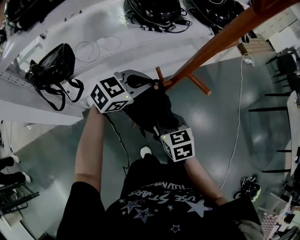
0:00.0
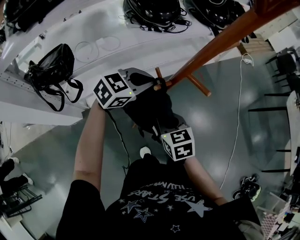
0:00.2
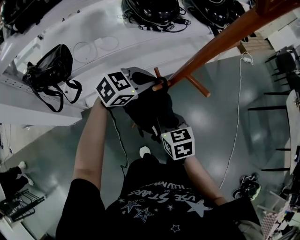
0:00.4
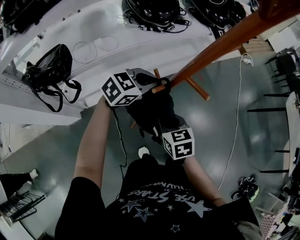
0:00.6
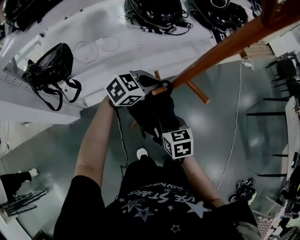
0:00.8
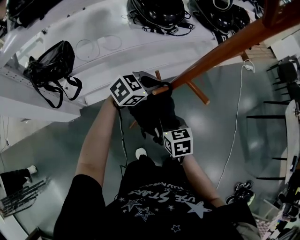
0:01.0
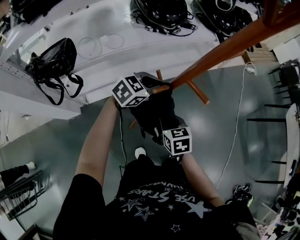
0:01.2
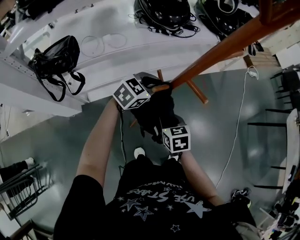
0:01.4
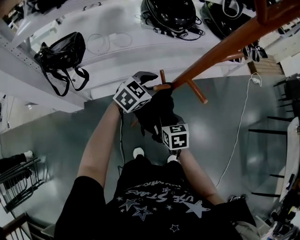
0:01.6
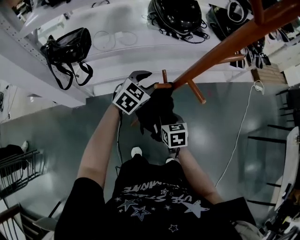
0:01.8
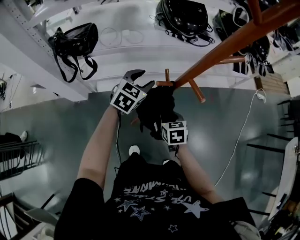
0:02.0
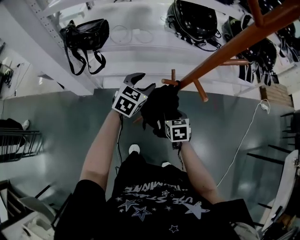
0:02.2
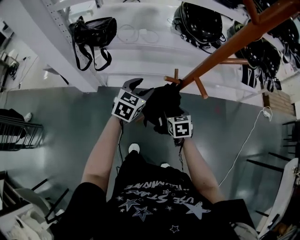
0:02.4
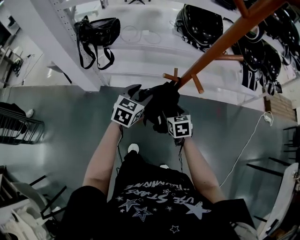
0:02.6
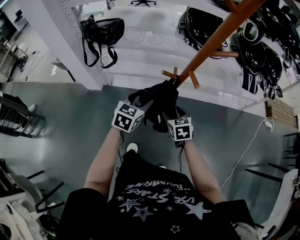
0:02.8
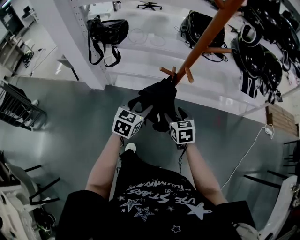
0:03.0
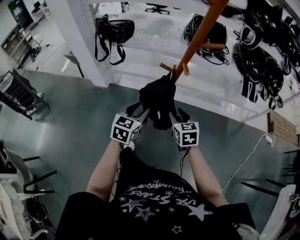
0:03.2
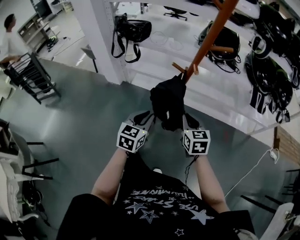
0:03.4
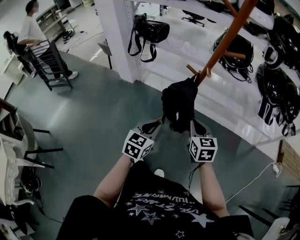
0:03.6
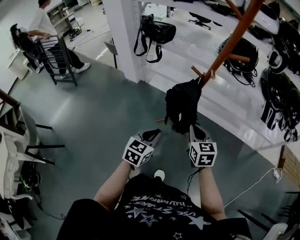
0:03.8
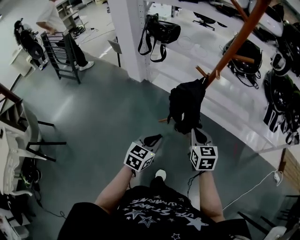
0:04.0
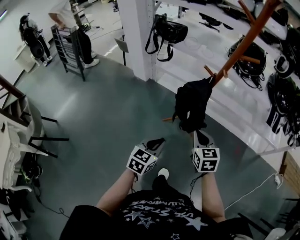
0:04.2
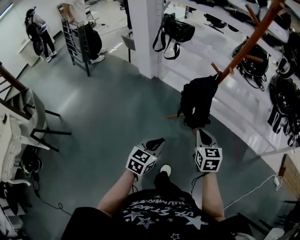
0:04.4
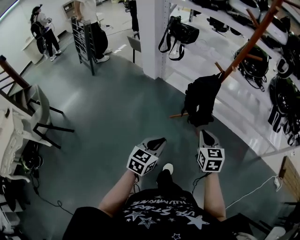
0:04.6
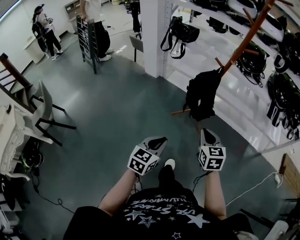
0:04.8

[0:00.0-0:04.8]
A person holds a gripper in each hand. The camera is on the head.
0:00.0 to 0:01.6: The grippers both shift downward by approximately 5 cm. The left gripper opens.
0:01.6 to 0:03.2: The right gripper moves about 15 cm, changes its angle by roughly 30 degrees, and opens its fingers. The left gripper moves roughly 25 cm, and swivels about 50 degrees.
0:03.2 to 0:04.8: The grippers both shift backward by roughly 35 cm. The left gripper closes up. The right gripper closes its fingers.

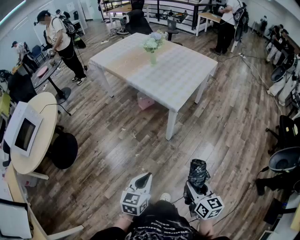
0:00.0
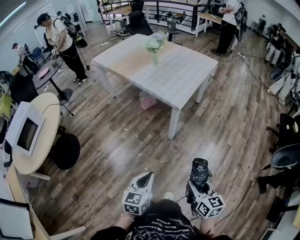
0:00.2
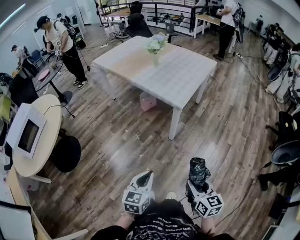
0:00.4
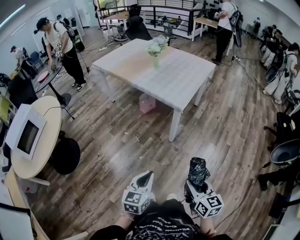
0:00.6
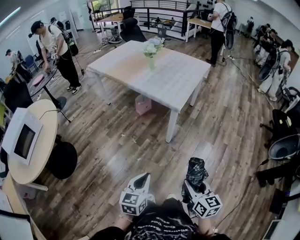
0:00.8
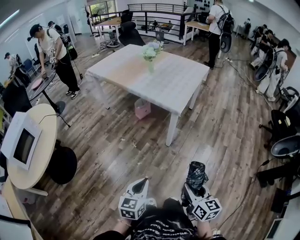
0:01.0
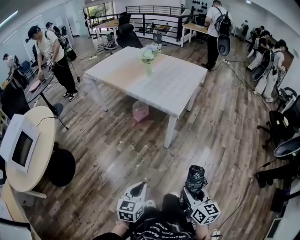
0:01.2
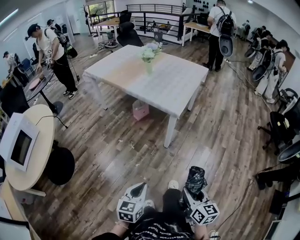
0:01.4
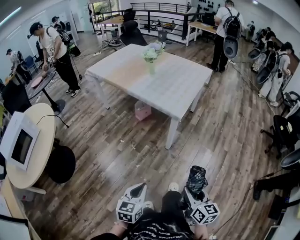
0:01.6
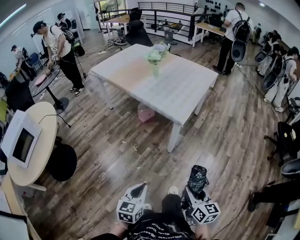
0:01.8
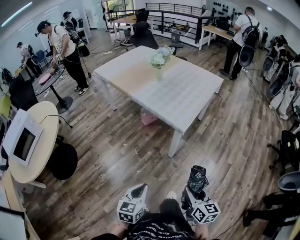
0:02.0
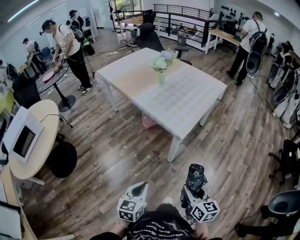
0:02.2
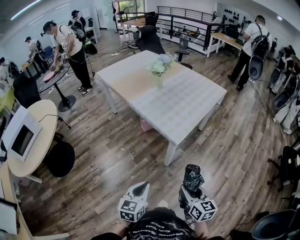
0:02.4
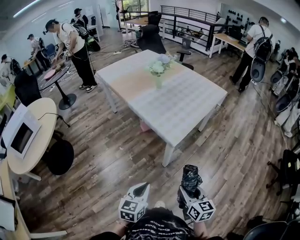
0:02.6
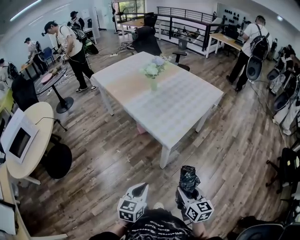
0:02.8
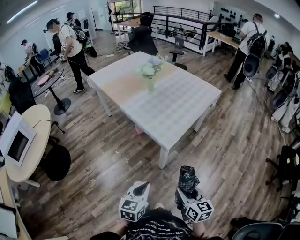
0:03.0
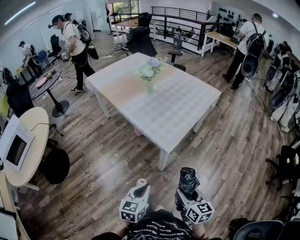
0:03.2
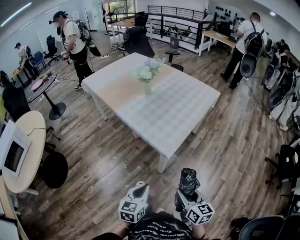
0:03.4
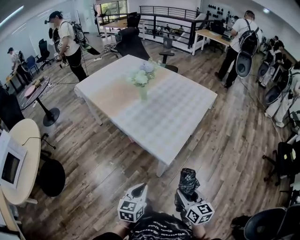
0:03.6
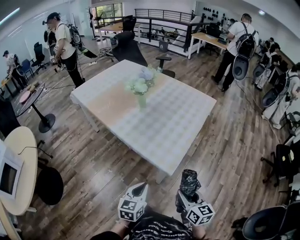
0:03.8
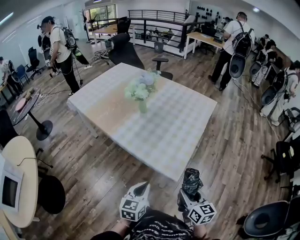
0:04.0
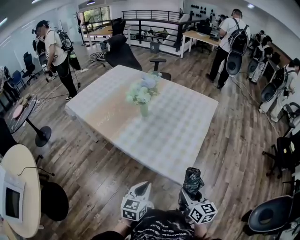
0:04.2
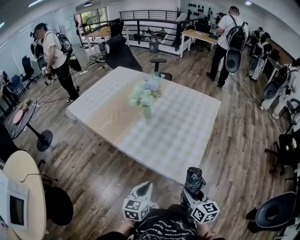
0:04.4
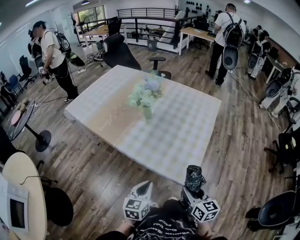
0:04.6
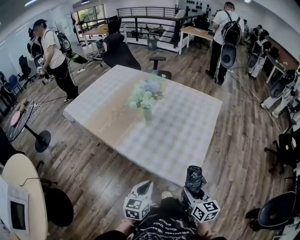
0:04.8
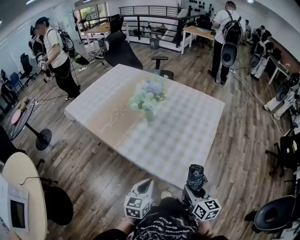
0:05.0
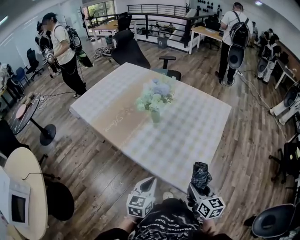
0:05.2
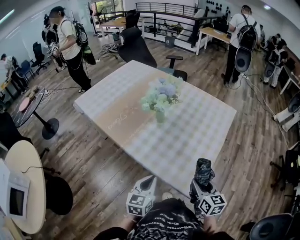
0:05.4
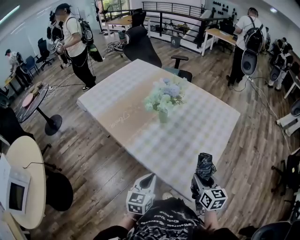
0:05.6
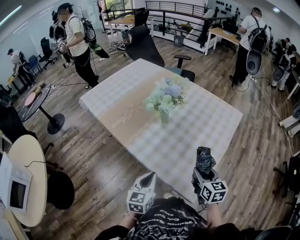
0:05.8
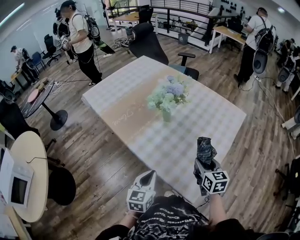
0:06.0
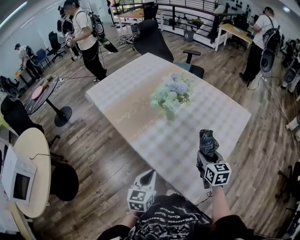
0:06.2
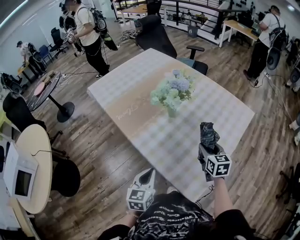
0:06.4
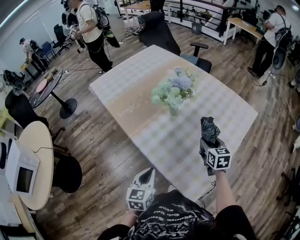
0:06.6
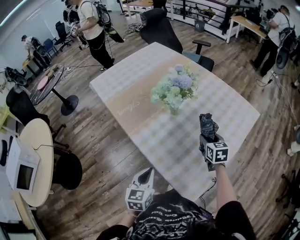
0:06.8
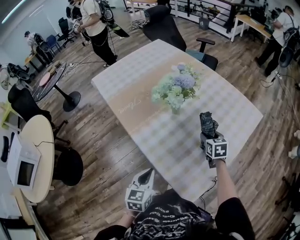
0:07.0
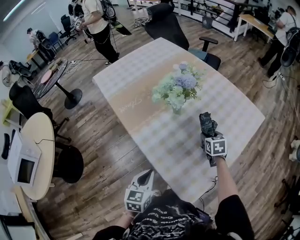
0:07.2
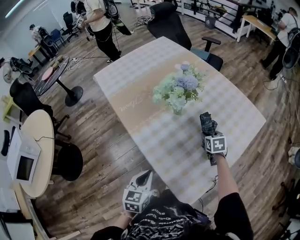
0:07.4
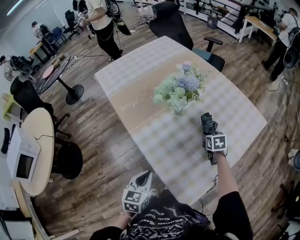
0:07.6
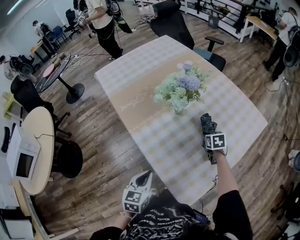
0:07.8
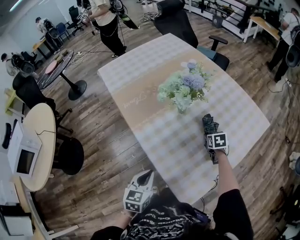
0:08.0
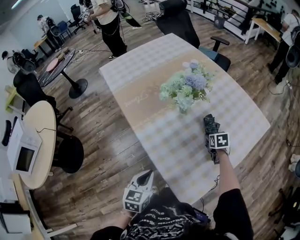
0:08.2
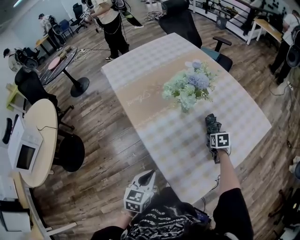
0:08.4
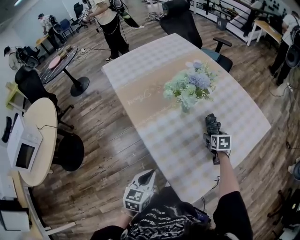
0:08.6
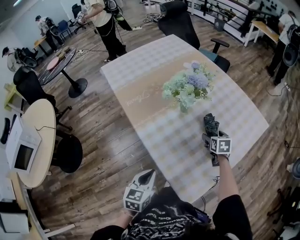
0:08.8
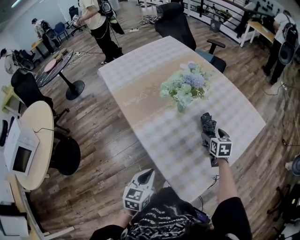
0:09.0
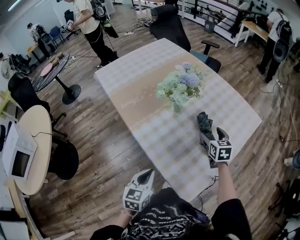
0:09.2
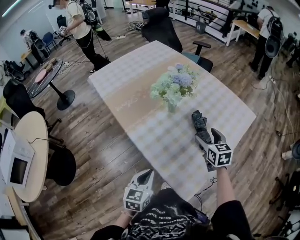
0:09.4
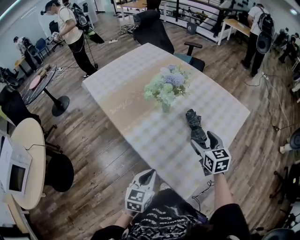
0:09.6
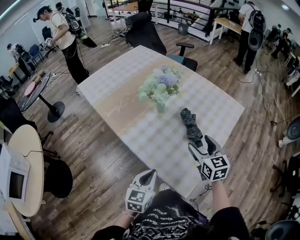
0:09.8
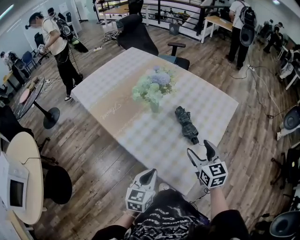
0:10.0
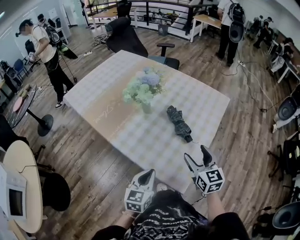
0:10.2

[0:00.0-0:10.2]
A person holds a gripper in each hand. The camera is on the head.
0:00.0 to 0:01.4: Both grippers travel together to the left and backward, approximately 15 cm.
0:01.4 to 0:03.0: Both grippers move forward and to the right, roughly 35 cm.
0:03.0 to 0:04.4: Both grippers move forward and to the left, some 40 cm.
0:04.4 to 0:05.8: The right gripper heads forward, covering roughly 20 cm, while the left gripper goes some 15 cm forward.
0:05.8 to 0:07.2: The right gripper heads forward and downward, covering approximately 30 cm, and swivels some 20 degrees. The left gripper shifts by roughly 5 cm.
0:07.2 to 0:08.8: The right gripper opens.
0:08.8 to 0:10.2: The left gripper heads to the right, covering about 5 cm, and changes its angle by some 20 degrees. The right gripper shifts about 30 cm backward and upward, and changes its angle by about 30 degrees.

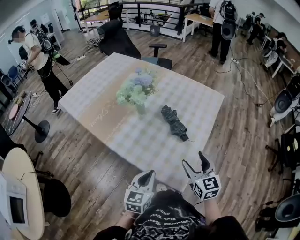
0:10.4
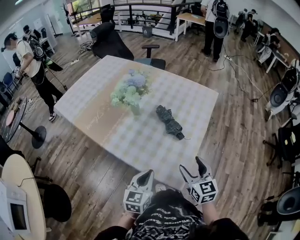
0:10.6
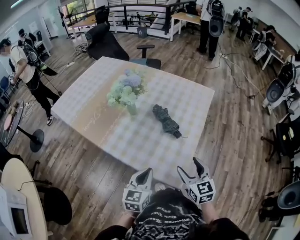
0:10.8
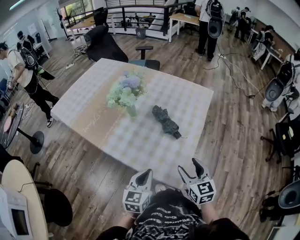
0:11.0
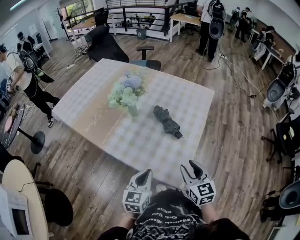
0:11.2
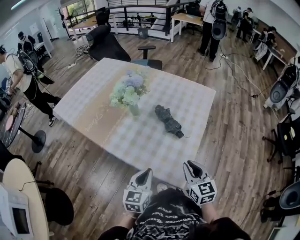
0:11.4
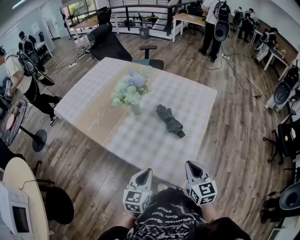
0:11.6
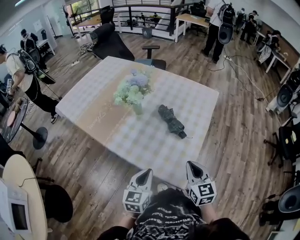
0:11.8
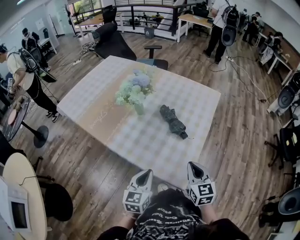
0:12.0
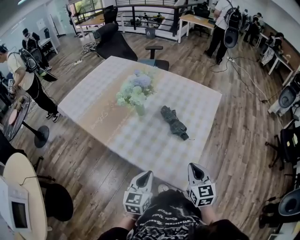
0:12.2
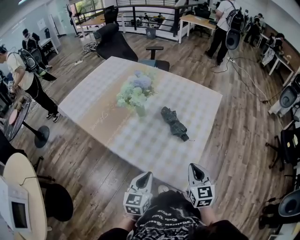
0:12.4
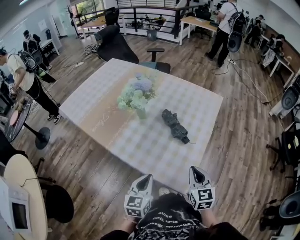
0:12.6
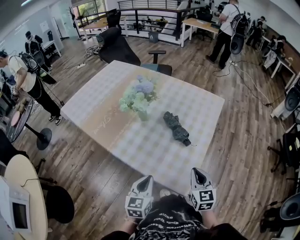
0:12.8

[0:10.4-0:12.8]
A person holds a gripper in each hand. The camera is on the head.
0:10.4 to 0:11.6: The right gripper shifts some 5 cm backward, and closes up.
0:11.6 to 0:12.8: The grippers stay close to where they were, moving slightly.

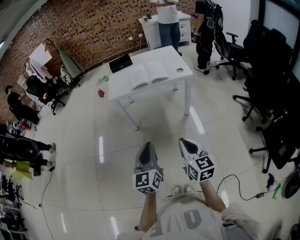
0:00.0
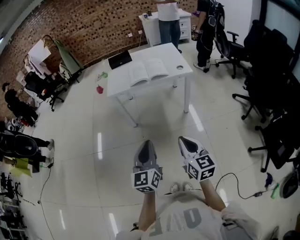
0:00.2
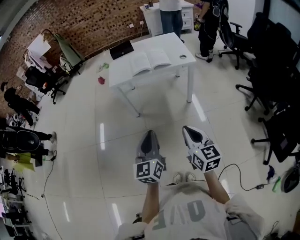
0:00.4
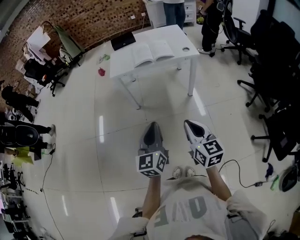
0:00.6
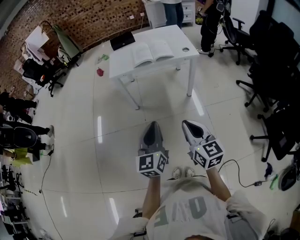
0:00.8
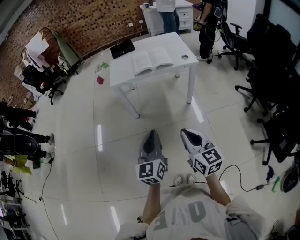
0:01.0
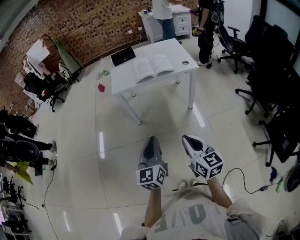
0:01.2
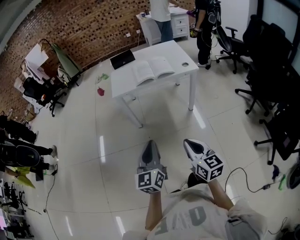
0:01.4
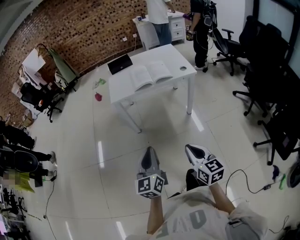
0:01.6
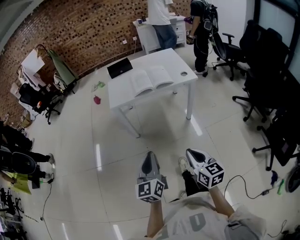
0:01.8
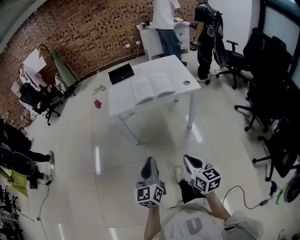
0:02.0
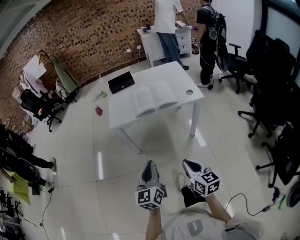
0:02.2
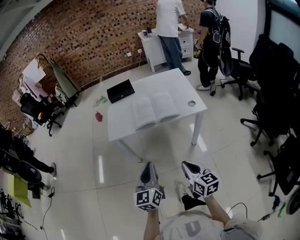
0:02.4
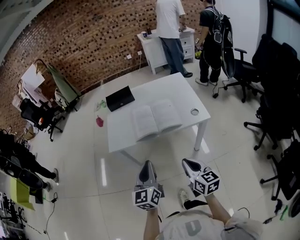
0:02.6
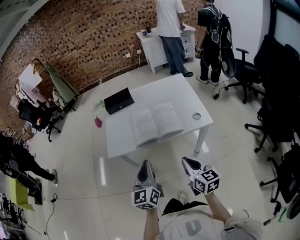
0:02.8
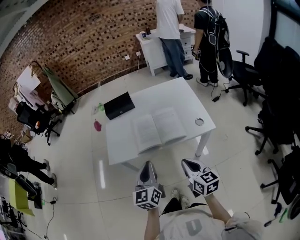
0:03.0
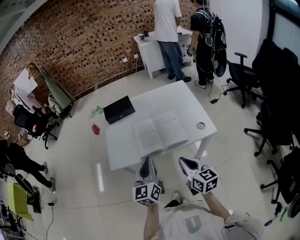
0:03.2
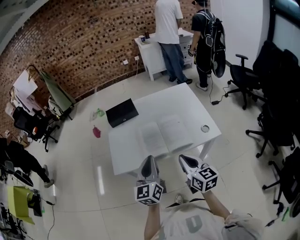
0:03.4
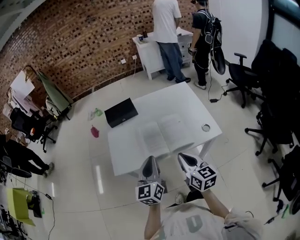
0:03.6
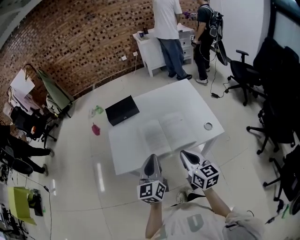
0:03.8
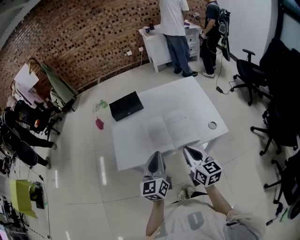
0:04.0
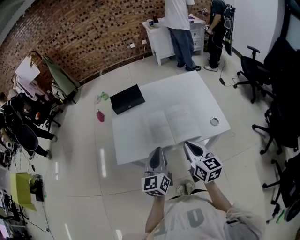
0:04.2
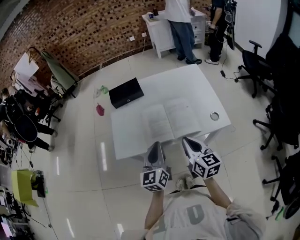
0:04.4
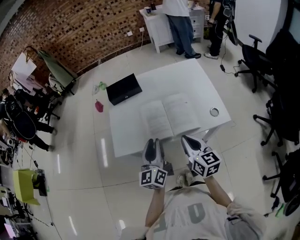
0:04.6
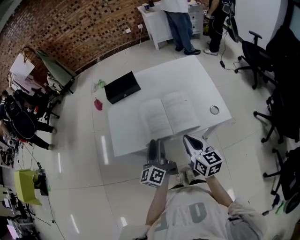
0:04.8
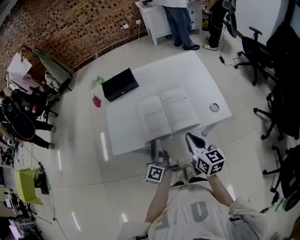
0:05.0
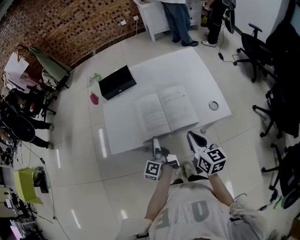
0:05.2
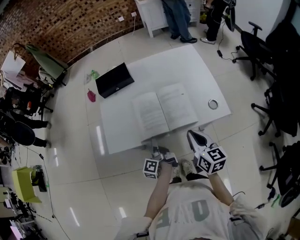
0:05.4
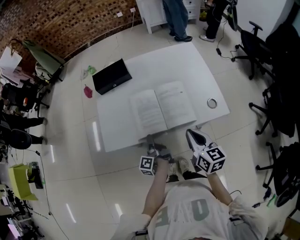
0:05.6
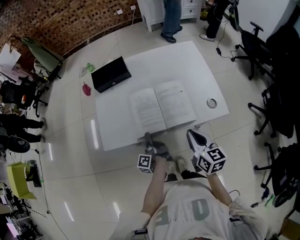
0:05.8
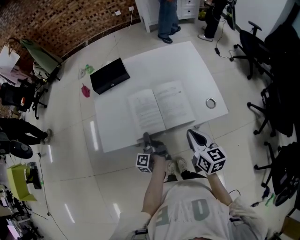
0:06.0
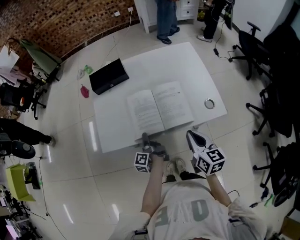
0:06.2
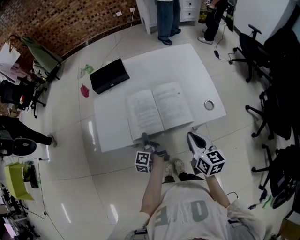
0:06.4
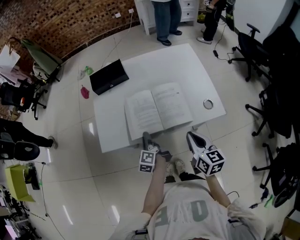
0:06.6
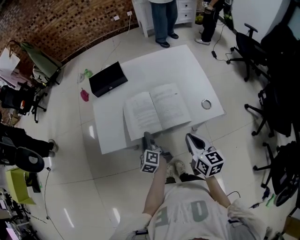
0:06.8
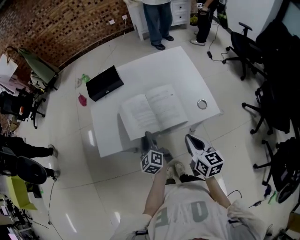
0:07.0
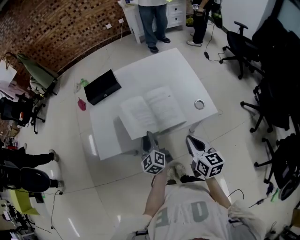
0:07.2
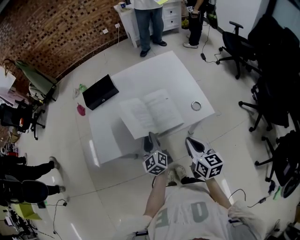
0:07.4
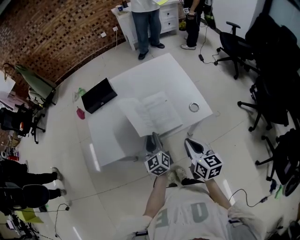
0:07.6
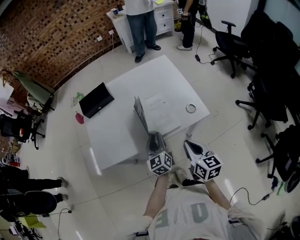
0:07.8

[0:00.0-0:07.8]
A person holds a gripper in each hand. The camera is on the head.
0:00.0 to 0:01.6: Both grippers travel together to the left, some 5 cm.
0:01.6 to 0:03.2: The pair of grippers is taken forward, some 50 cm.
0:03.2 to 0:04.6: The two grippers go roughly 5 cm forward.
0:04.6 to 0:06.2: The right gripper goes some 5 cm to the right; the left gripper shifts roughly 25 cm downward, twists about 60 degrees counterclockwise, seen from behind, and opens, then closes once more.
0:06.2 to 0:07.8: The right gripper travels backward by approximately 5 cm, while the left gripper goes approximately 20 cm to the right and upward, and rolls clockwise, seen from behind, by some 70 degrees.
